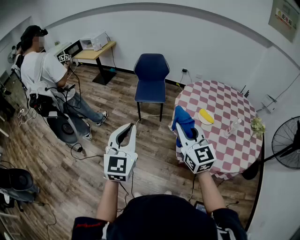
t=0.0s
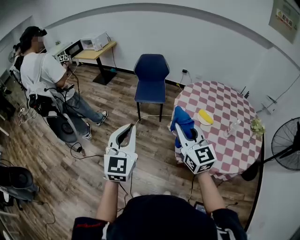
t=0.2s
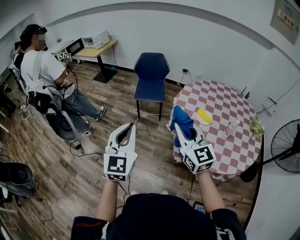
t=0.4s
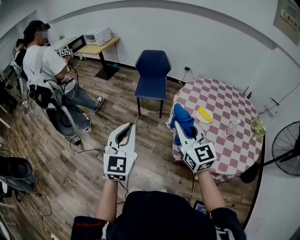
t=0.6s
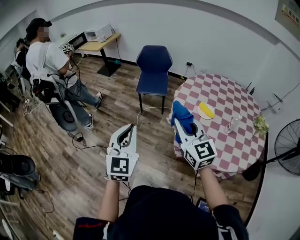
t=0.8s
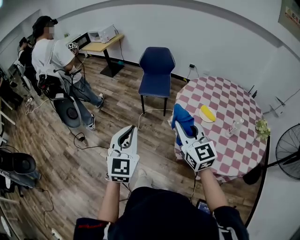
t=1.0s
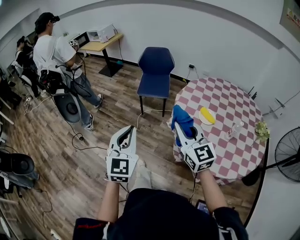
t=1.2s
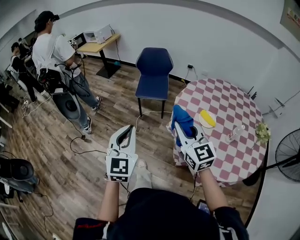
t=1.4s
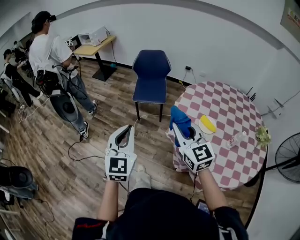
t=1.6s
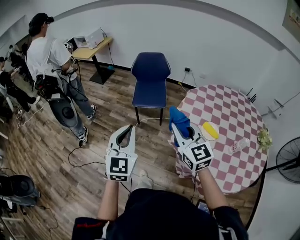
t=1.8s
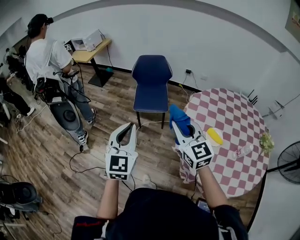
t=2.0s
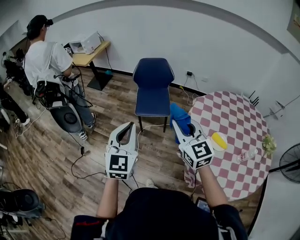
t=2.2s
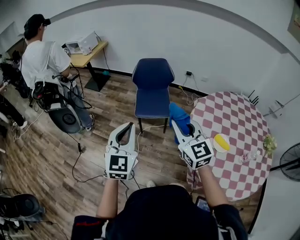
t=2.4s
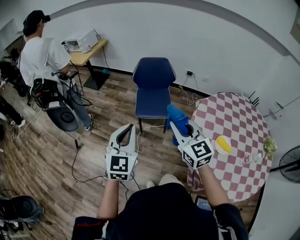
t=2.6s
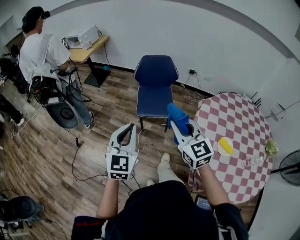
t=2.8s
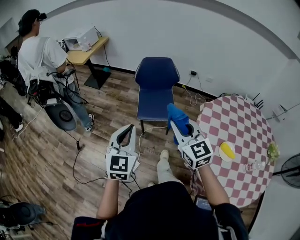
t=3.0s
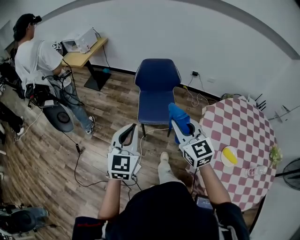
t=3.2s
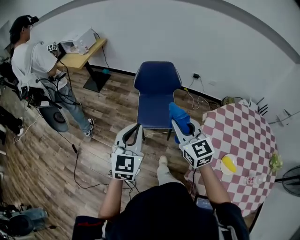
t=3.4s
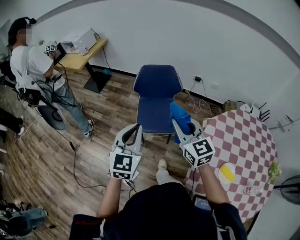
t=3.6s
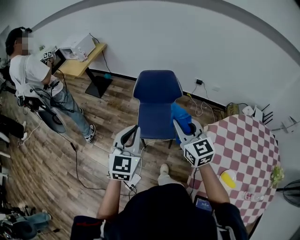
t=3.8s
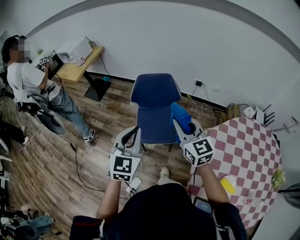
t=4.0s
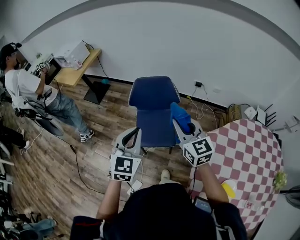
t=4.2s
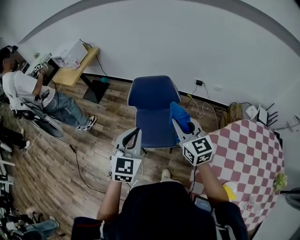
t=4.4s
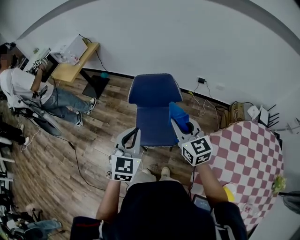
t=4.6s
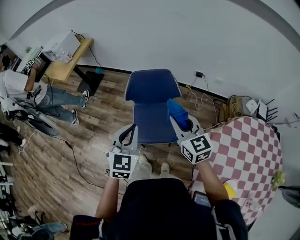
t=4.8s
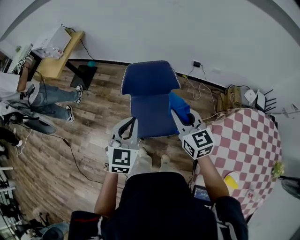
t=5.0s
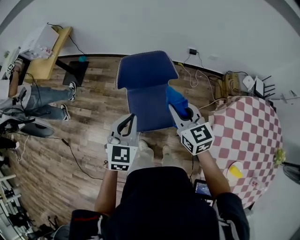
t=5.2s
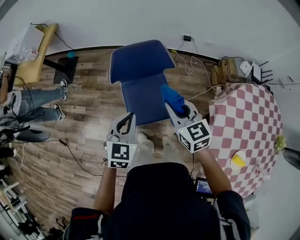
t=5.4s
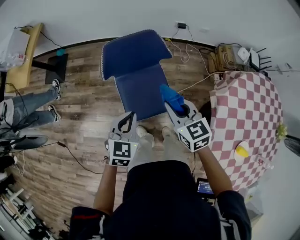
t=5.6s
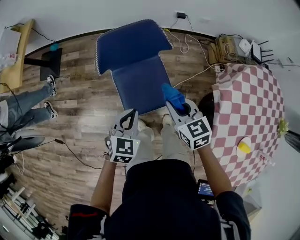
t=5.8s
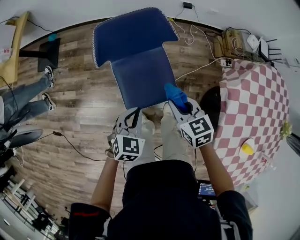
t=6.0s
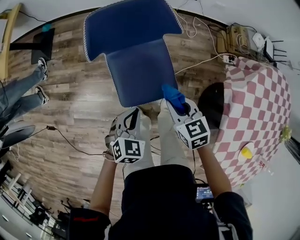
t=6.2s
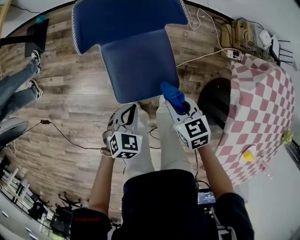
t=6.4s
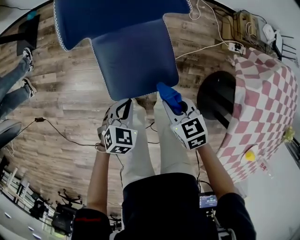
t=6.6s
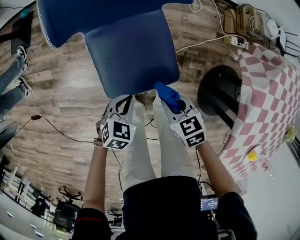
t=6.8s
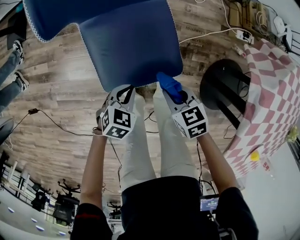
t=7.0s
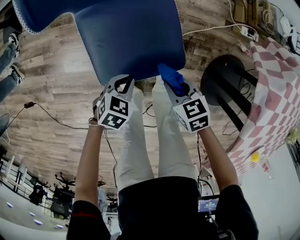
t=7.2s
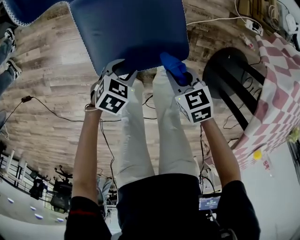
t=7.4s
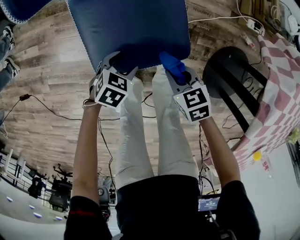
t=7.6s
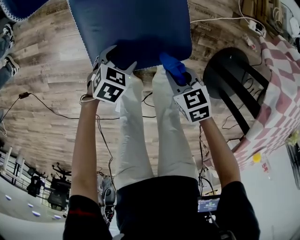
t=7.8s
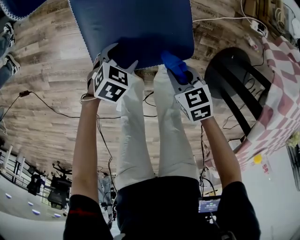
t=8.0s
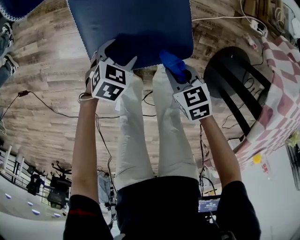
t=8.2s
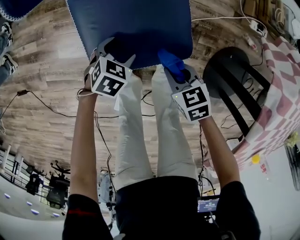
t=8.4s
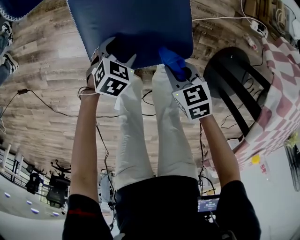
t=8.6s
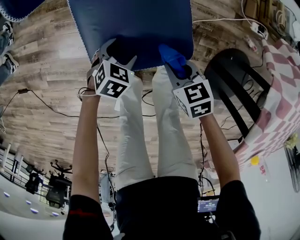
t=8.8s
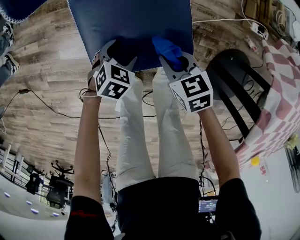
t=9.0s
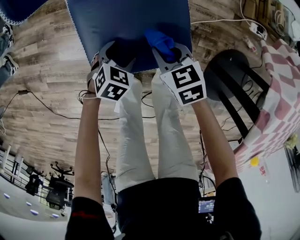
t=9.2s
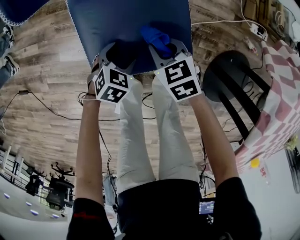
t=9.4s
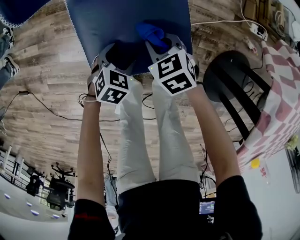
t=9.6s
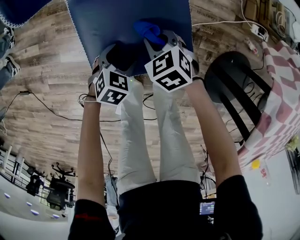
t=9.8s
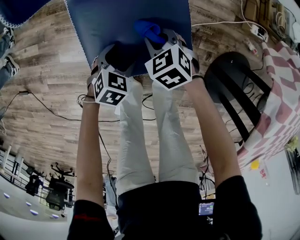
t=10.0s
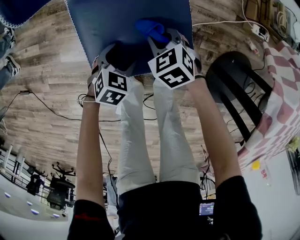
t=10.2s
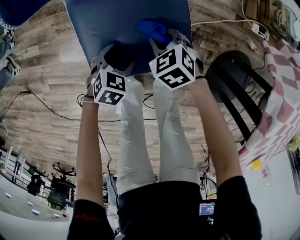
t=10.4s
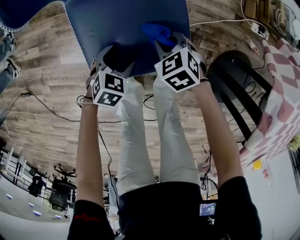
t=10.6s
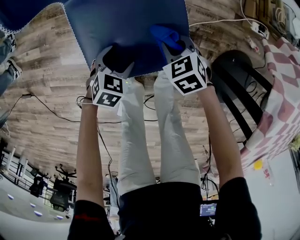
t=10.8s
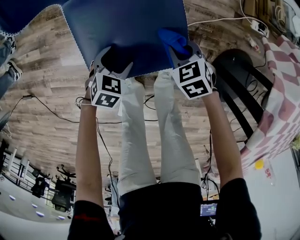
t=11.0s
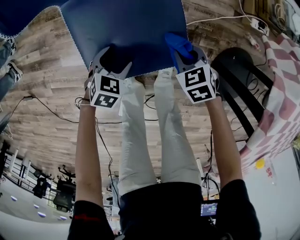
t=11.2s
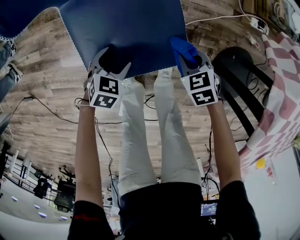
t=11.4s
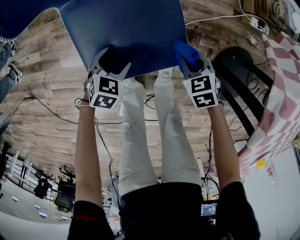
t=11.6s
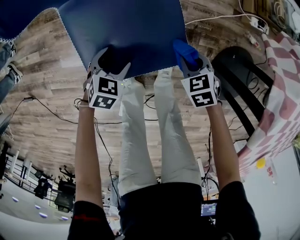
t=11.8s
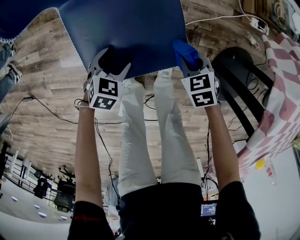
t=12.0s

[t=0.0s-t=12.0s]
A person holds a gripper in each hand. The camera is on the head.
t=0.0s to t=1.6s: The right gripper shifts about 10 cm forward, while the left gripper is displaced forward, to the right and downward by about 15 cm.
t=1.6s to t=3.0s: Both grippers travel together forward, roughly 30 cm.
t=3.0s to t=4.4s: The grippers both shift forward and to the right by approximately 35 cm.
t=4.4s to t=6.0s: Both grippers travel together downward, approximately 30 cm. The right gripper tilts its fingers roughly 30 degrees downward, while the left gripper rotates some 40 degrees.
t=6.0s to t=7.6s: The grippers both shift downward by some 35 cm. The right gripper changes its angle by about 20 degrees. The left gripper turns by approximately 30 degrees, and opens up.
t=7.6s to t=9.0s: The right gripper heads forward, covering approximately 5 cm.
t=9.0s to t=10.4s: The right gripper travels forward by roughly 5 cm, and changes its angle by roughly 20 degrees.
t=10.4s to t=12.0s: The right gripper goes approximately 15 cm to the right and backward.

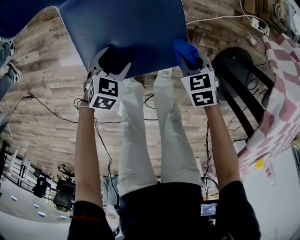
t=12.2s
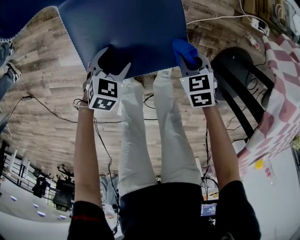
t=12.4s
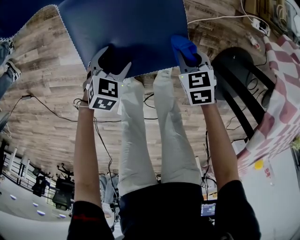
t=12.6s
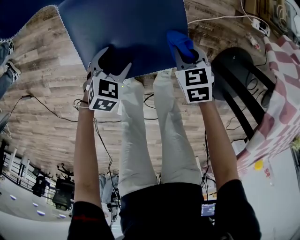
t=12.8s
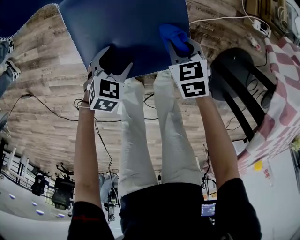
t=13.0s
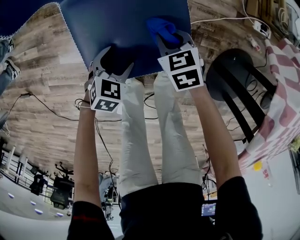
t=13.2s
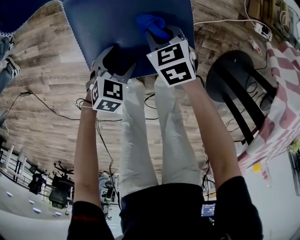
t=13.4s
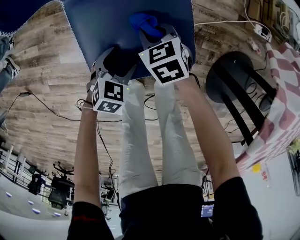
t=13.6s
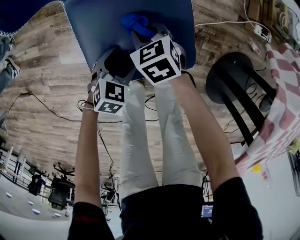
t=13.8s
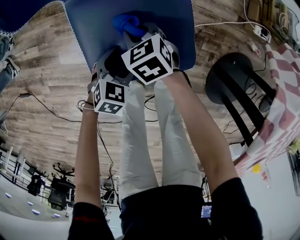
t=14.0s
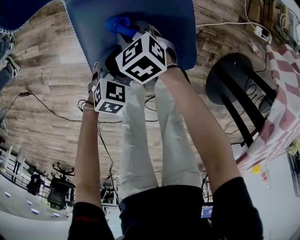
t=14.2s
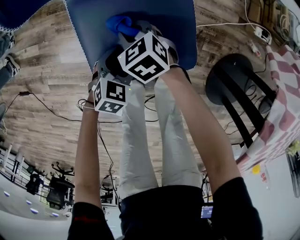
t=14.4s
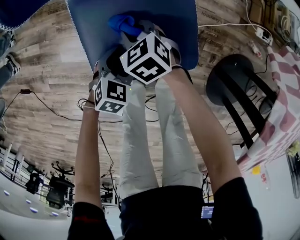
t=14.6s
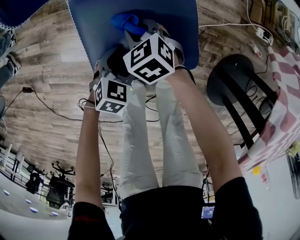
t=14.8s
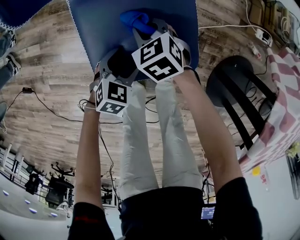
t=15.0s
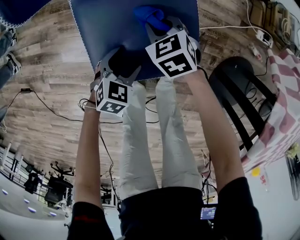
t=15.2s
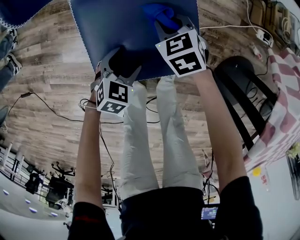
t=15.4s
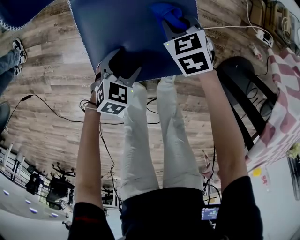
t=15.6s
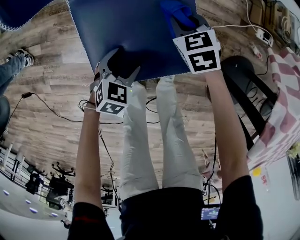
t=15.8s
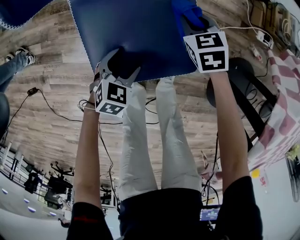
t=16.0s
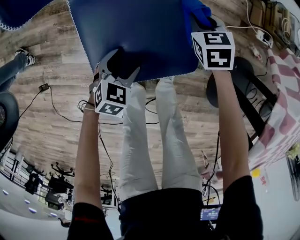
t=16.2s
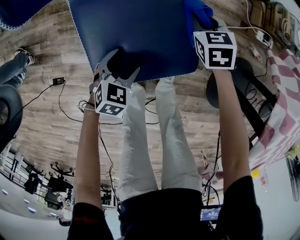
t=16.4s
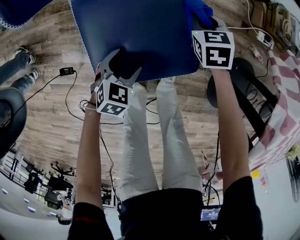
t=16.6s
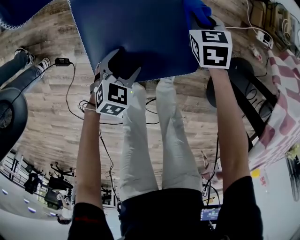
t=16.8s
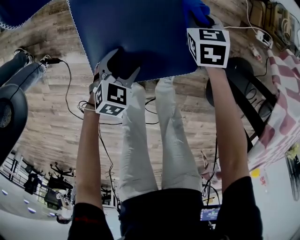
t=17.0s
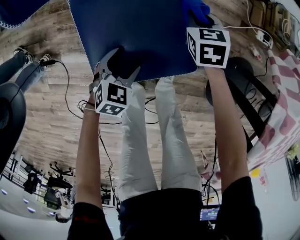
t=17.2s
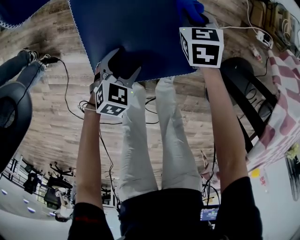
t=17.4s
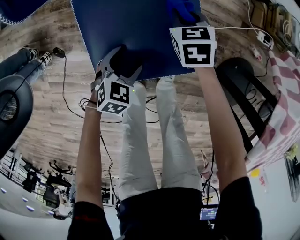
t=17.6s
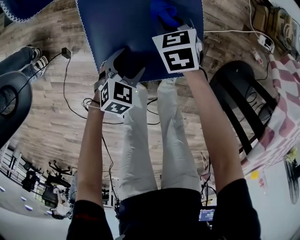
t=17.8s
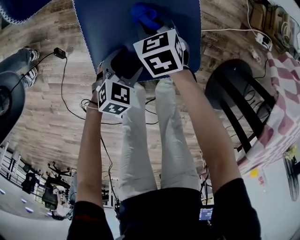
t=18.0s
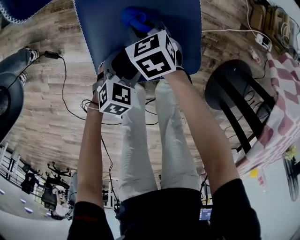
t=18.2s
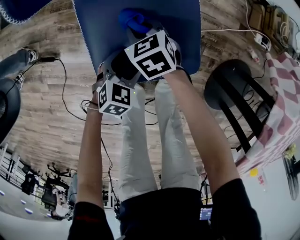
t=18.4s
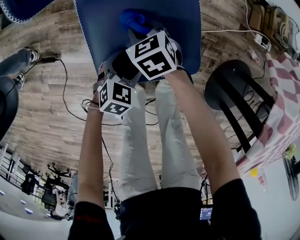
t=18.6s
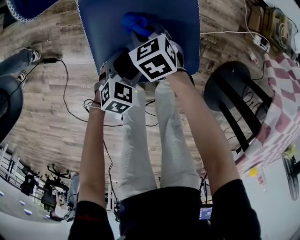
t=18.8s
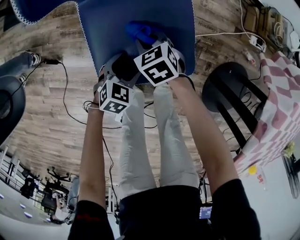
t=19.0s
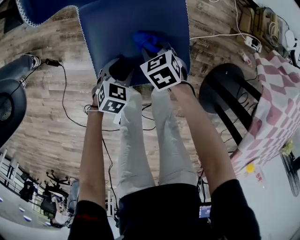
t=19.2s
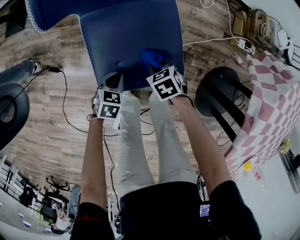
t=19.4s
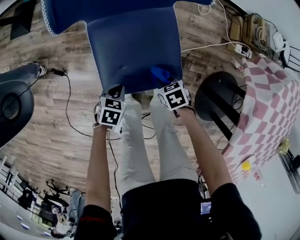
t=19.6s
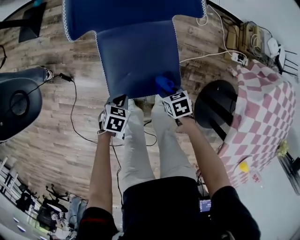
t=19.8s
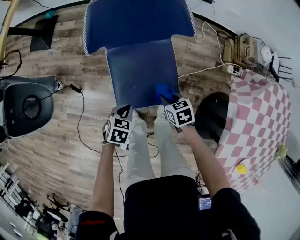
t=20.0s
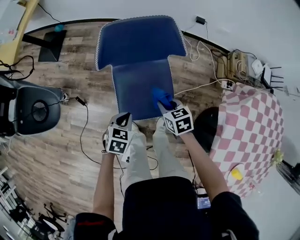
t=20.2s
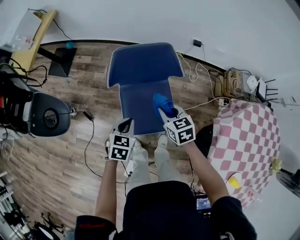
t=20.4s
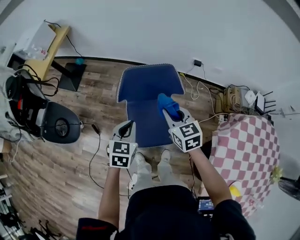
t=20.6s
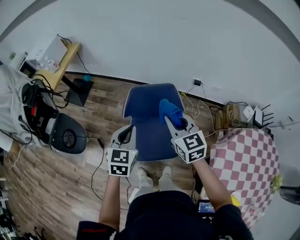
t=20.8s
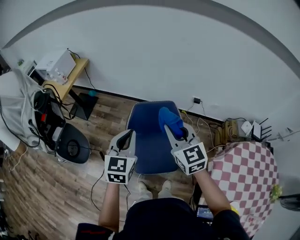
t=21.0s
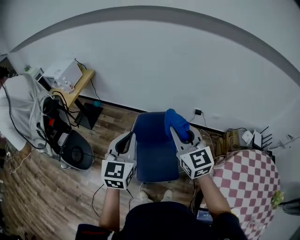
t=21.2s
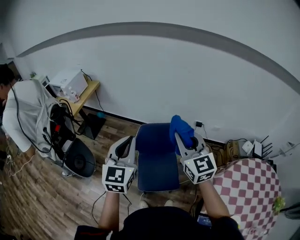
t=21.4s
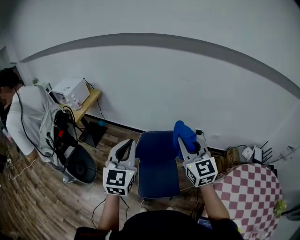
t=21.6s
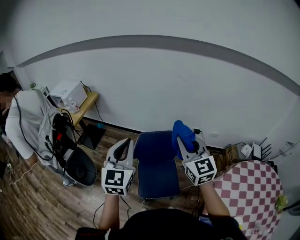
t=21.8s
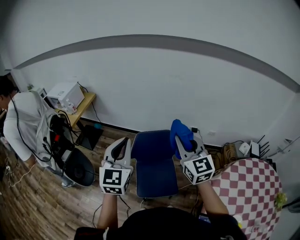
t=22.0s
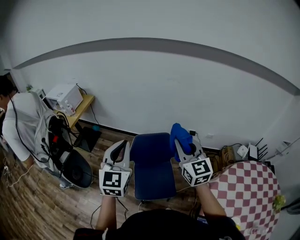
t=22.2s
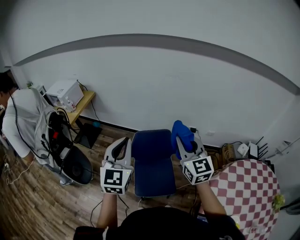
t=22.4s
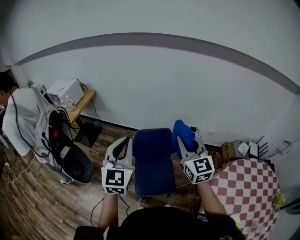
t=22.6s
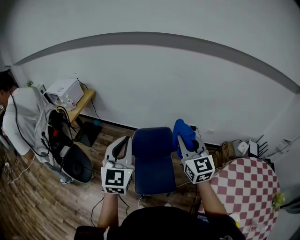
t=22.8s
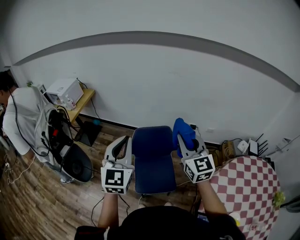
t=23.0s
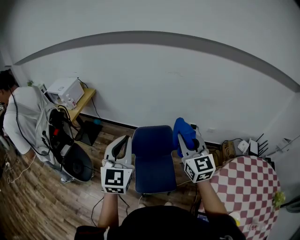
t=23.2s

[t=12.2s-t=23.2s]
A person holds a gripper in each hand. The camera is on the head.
t=12.2s to t=13.8s: The right gripper moves to the left and forward, roughly 20 cm.
t=13.8s to t=15.4s: The right gripper ends up approximately 5 cm from where it was.
t=15.4s to t=17.0s: The right gripper goes some 10 cm to the right and forward, and turns by some 20 degrees.
t=17.0s to t=18.4s: The right gripper travels to the left and backward by about 20 cm, and swivels about 20 degrees.
t=18.4s to t=20.0s: The left gripper is displaced upward by about 15 cm, turns by approximately 20 degrees, and closes up, while the right gripper shifts some 20 cm upward, to the right and backward.
t=20.0s to t=21.6s: Both grippers move upward, roughly 70 cm. The left gripper tilts its fingers some 60 degrees upward. The right gripper tips its fingers upward by some 60 degrees.
t=21.6s to t=23.2s: There are only small adjustments of the grippers.

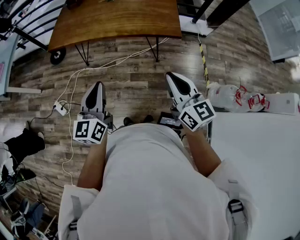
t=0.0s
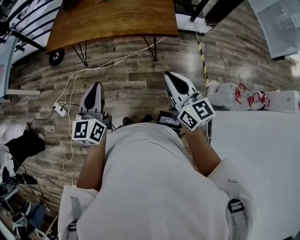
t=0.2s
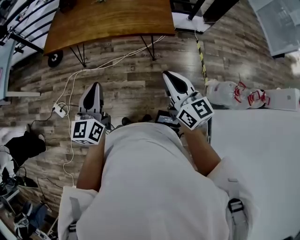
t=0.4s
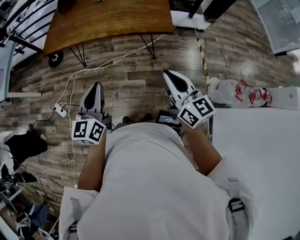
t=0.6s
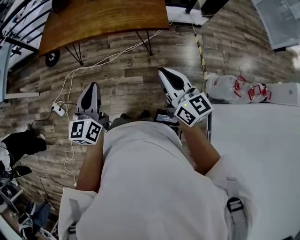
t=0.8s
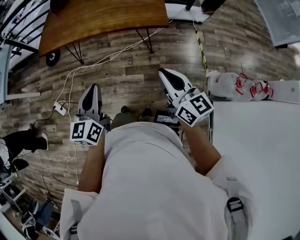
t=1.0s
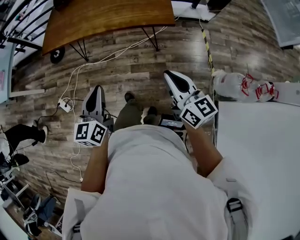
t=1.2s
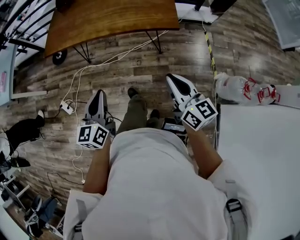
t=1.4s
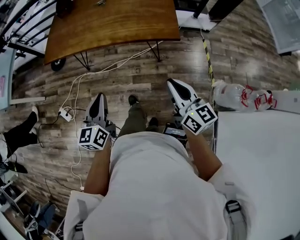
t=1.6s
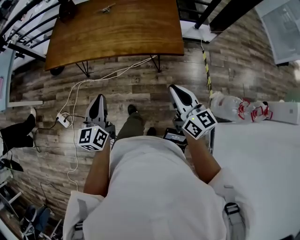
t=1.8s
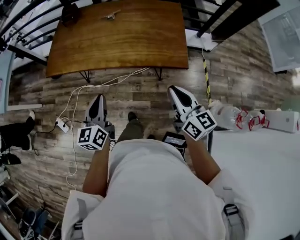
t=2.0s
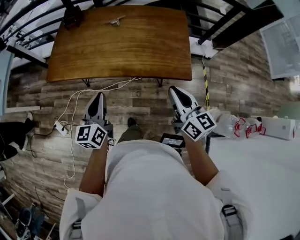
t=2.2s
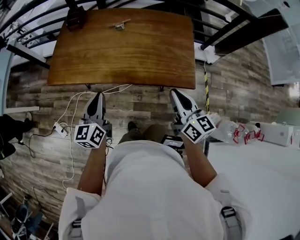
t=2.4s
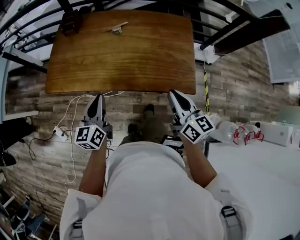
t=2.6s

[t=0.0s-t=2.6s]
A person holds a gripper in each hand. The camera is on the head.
t=0.0s to t=1.2s: Both grippers move to the right, approximately 5 cm.
t=1.2s to t=2.6s: Both grippers move forward, approximately 35 cm.
